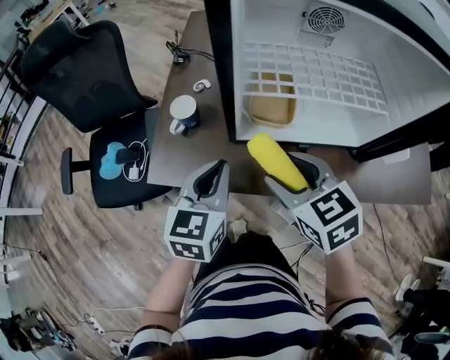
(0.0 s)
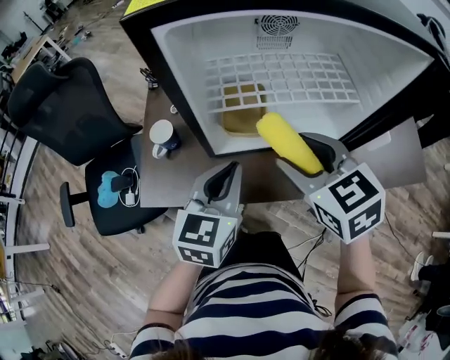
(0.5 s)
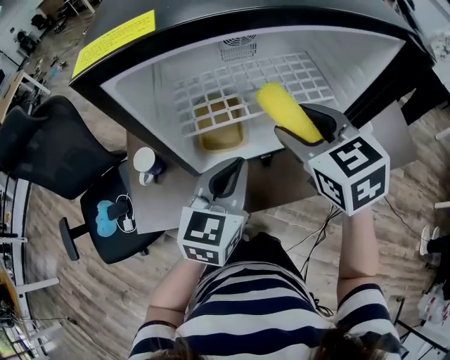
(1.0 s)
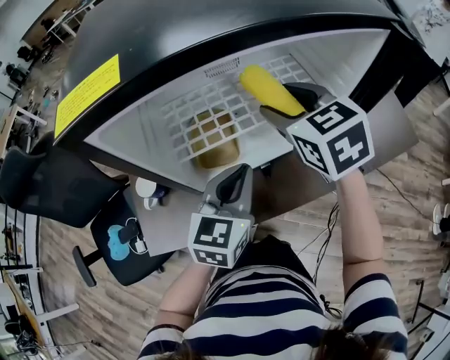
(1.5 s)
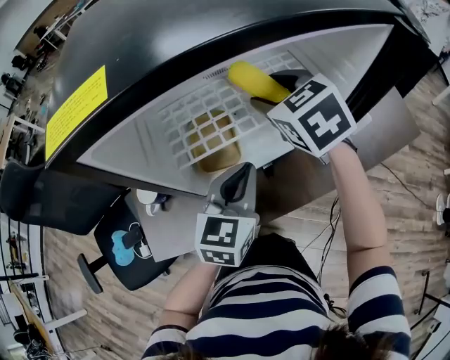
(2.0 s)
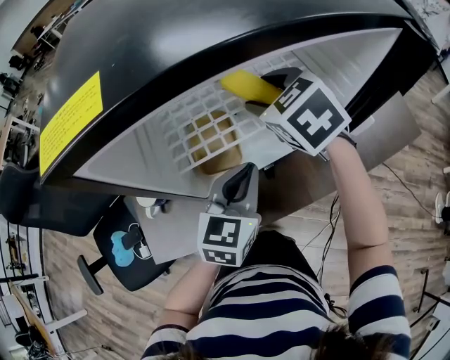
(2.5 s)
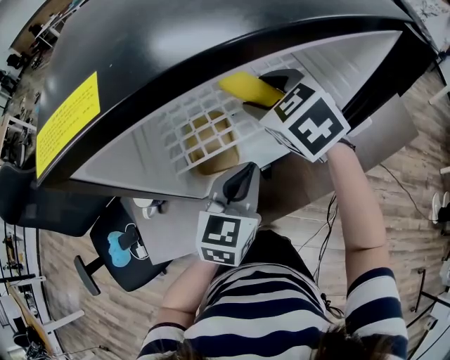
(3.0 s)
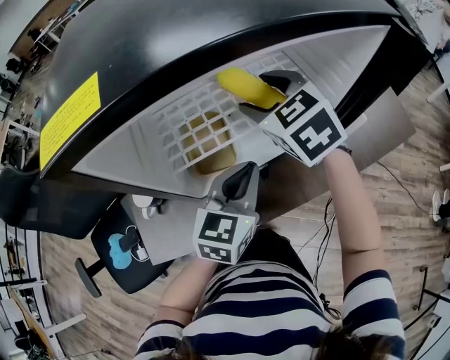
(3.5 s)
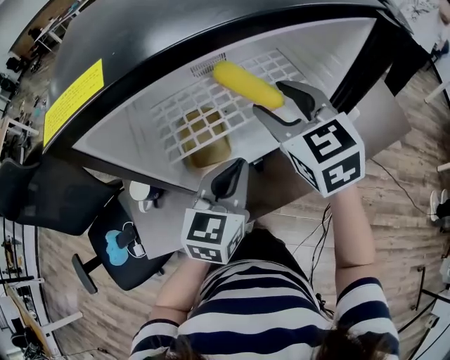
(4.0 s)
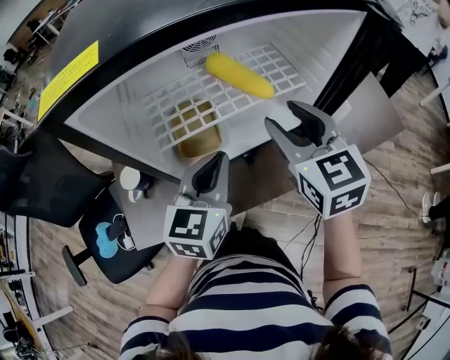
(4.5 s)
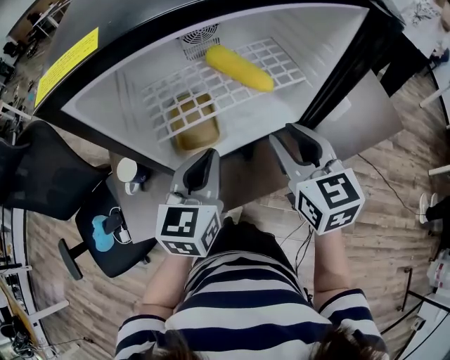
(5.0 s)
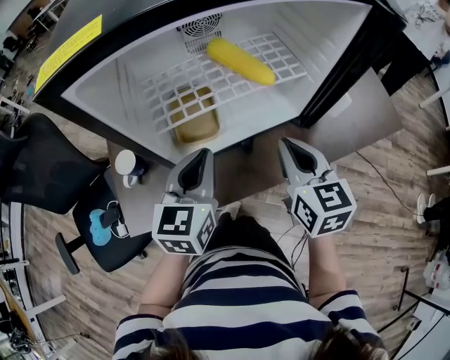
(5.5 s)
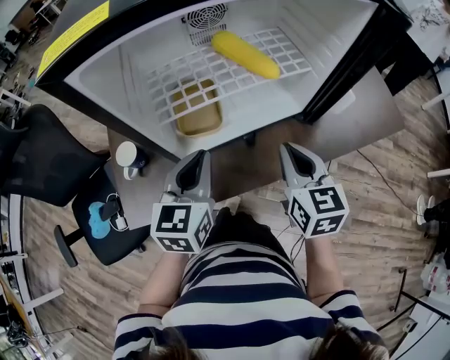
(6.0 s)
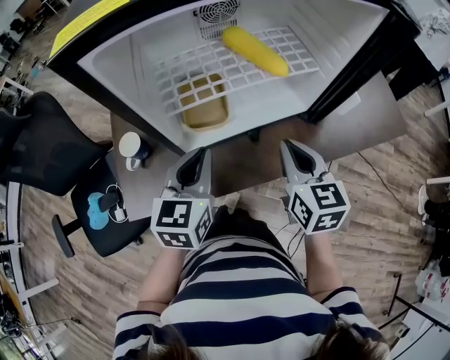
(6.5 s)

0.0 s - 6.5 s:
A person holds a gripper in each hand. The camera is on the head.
0.0 s - 2.0 s: The right gripper moves about 25 cm, and changes its angle by some 30 degrees, while the left gripper changes place by approximately 20 cm, and swivels roughly 30 degrees.
2.0 s - 4.5 s: The right gripper goes approximately 10 cm backward and to the right, and rotates about 20 degrees.
4.5 s - 6.5 s: The right gripper moves downward and backward, roughly 10 cm, and closes up, while the left gripper moves to the left, about 5 cm.

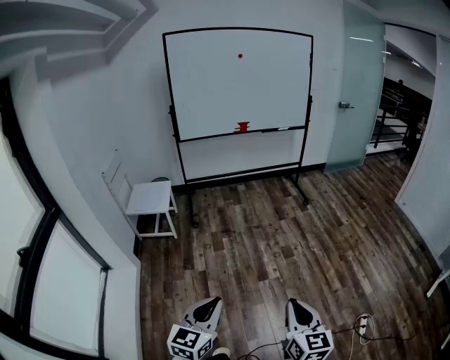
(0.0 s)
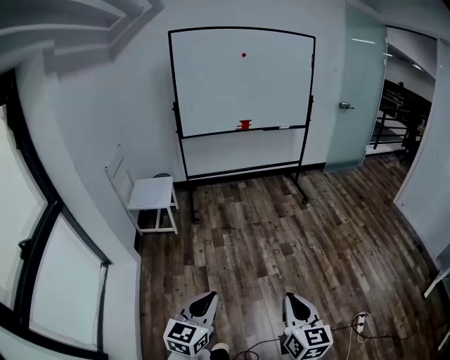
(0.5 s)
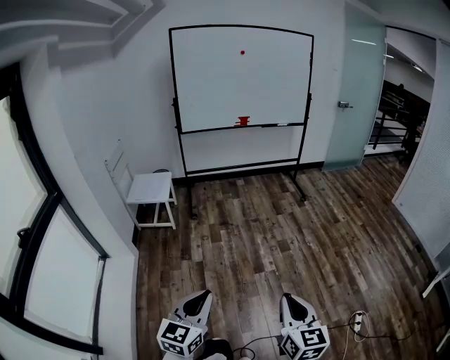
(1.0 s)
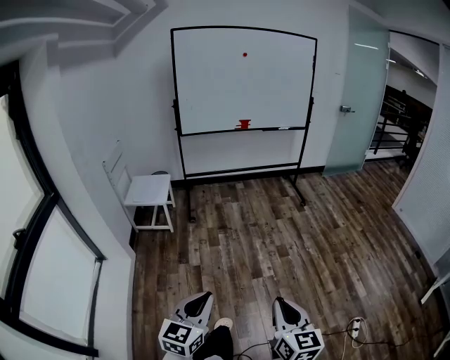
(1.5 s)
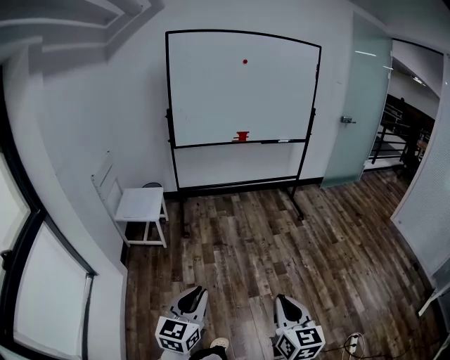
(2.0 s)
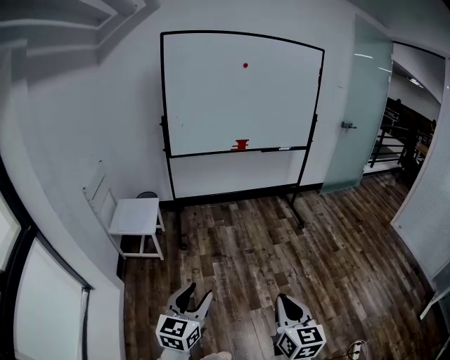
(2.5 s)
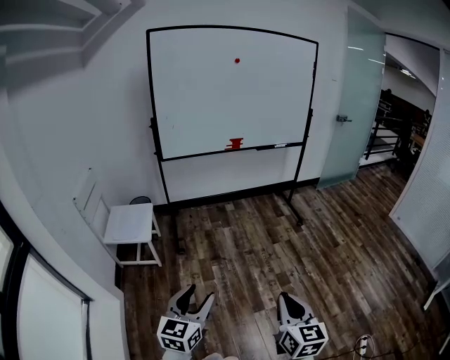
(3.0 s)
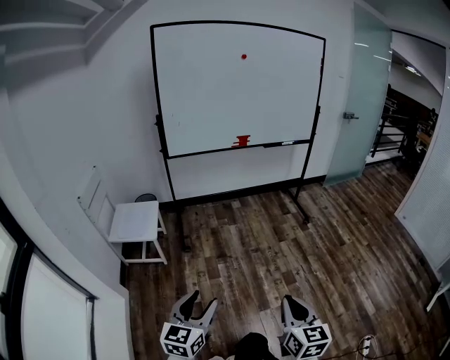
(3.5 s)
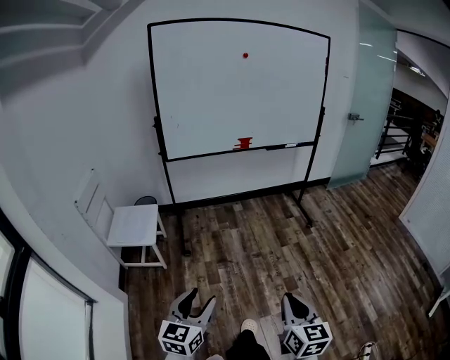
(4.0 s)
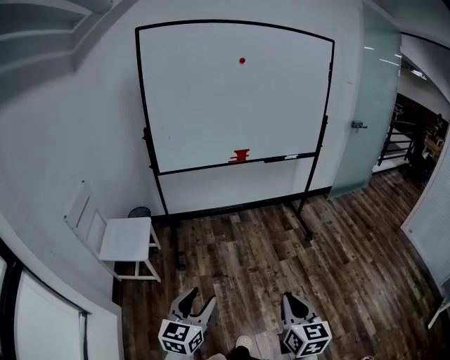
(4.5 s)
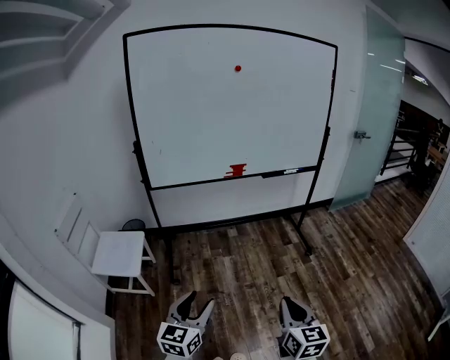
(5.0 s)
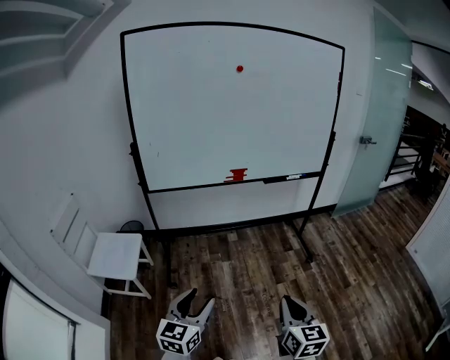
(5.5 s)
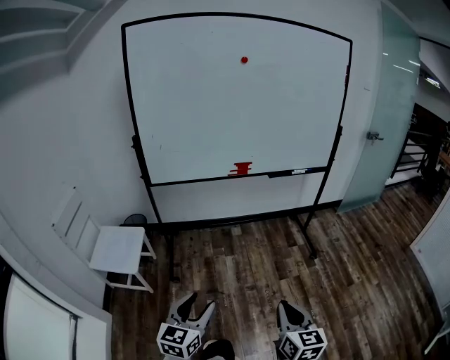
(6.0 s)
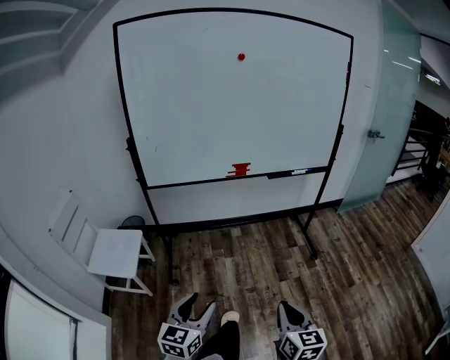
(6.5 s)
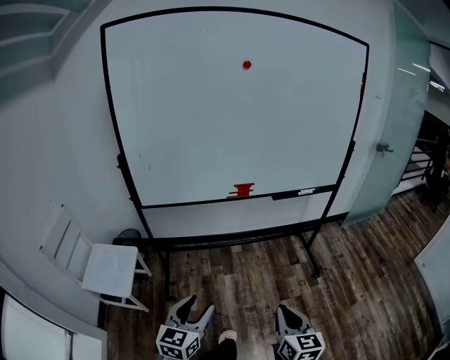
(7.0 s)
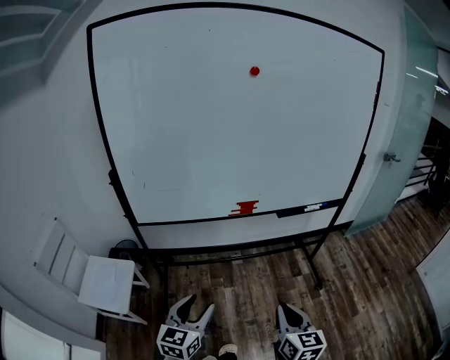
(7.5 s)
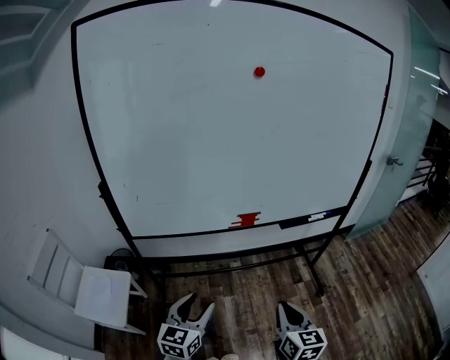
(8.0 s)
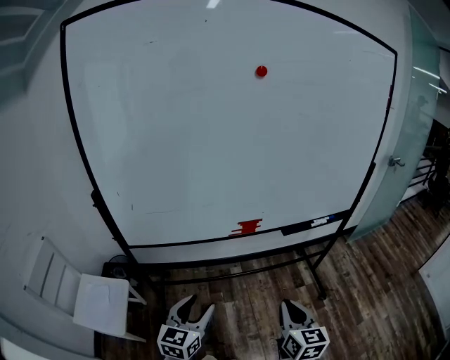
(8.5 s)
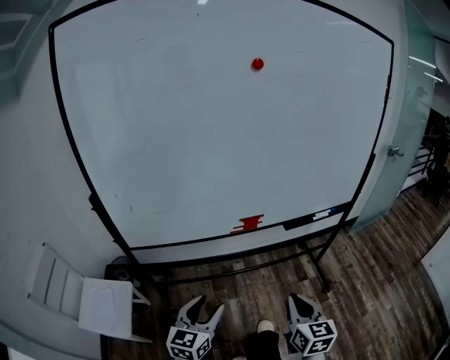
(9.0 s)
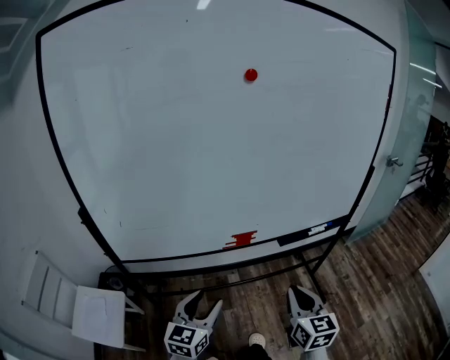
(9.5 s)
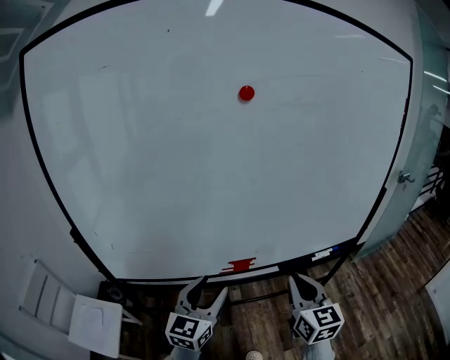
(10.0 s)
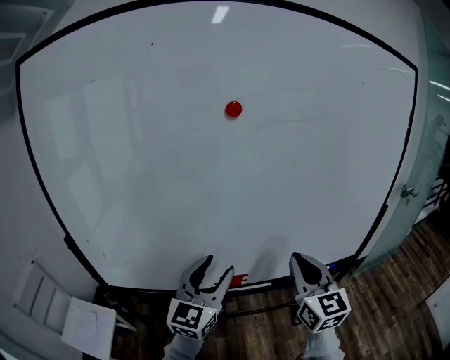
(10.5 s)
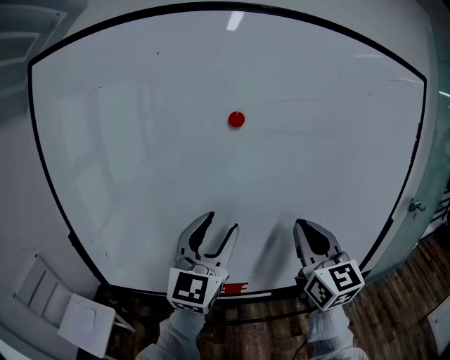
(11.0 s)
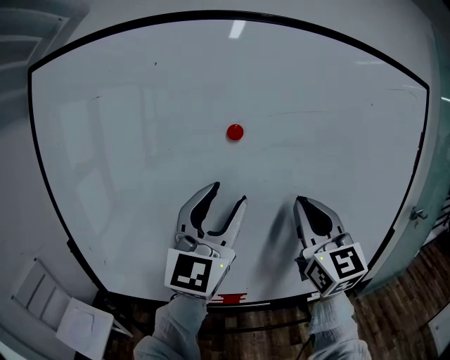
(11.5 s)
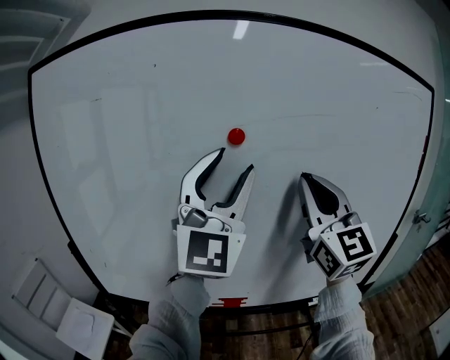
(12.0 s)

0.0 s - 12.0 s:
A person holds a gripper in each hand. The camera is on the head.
0.0 s - 2.0 s: The two grippers go some 10 cm forward.
2.0 s - 4.0 s: Both grippers travel together forward, some 20 cm. The left gripper opens up.
4.0 s - 6.0 s: Both grippers move forward, about 25 cm.
6.0 s - 8.0 s: Both grippers move forward, about 35 cm.
8.0 s - 10.0 s: Both grippers move forward and upward, roughly 25 cm.
10.0 s - 12.0 s: The left gripper travels upward by roughly 40 cm, and tilts its fingers about 30 degrees upward, while the right gripper heads upward and forward, covering roughly 35 cm, and rotates roughly 40 degrees.

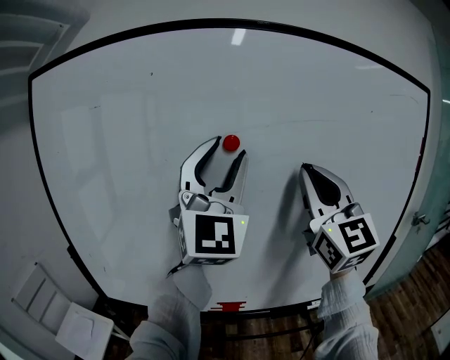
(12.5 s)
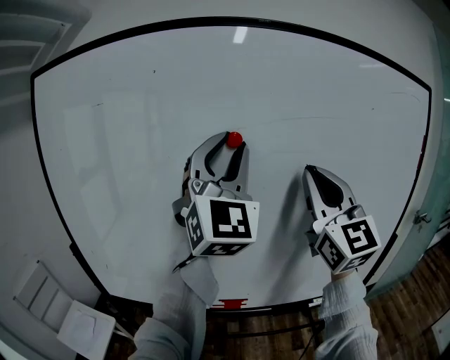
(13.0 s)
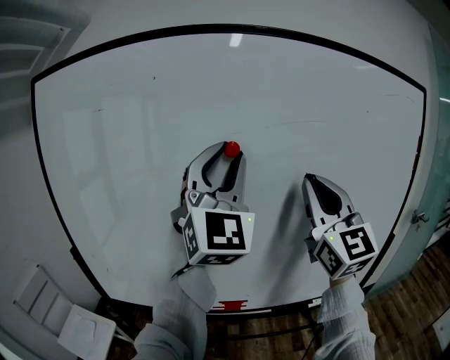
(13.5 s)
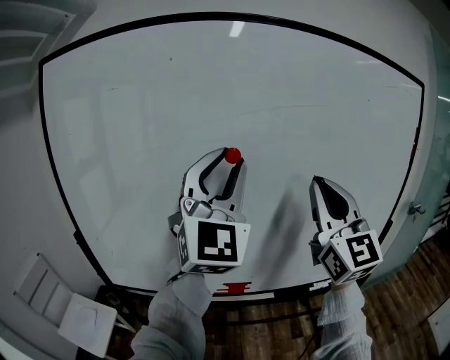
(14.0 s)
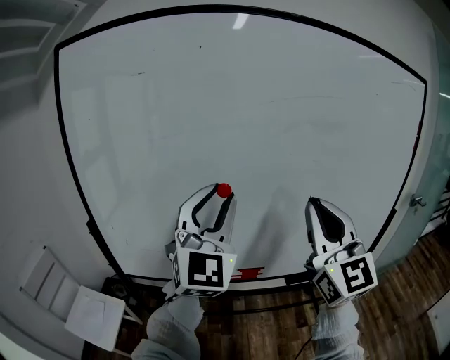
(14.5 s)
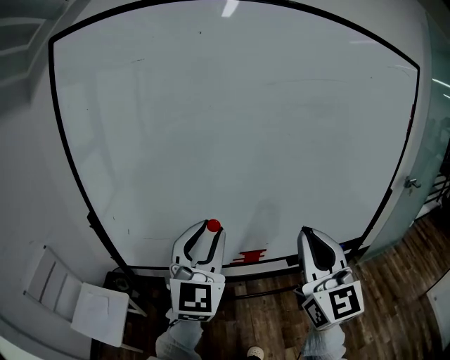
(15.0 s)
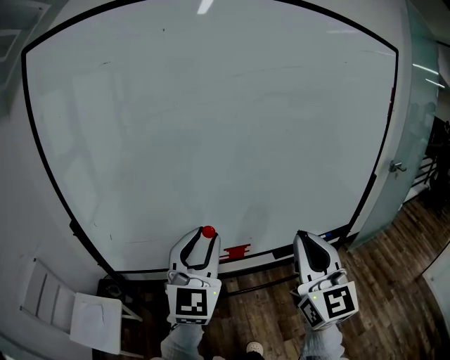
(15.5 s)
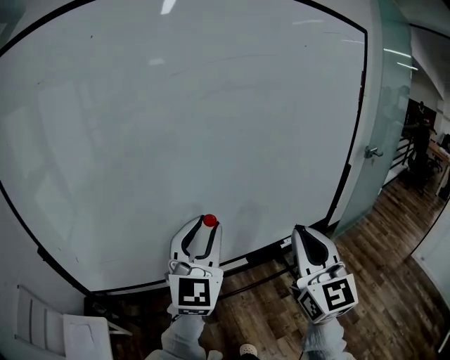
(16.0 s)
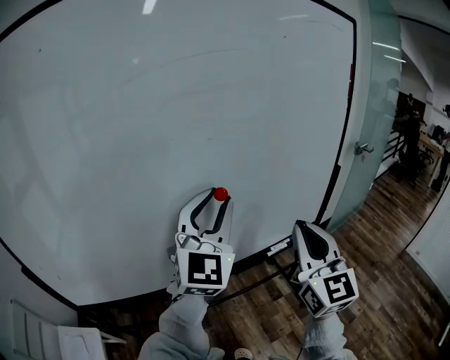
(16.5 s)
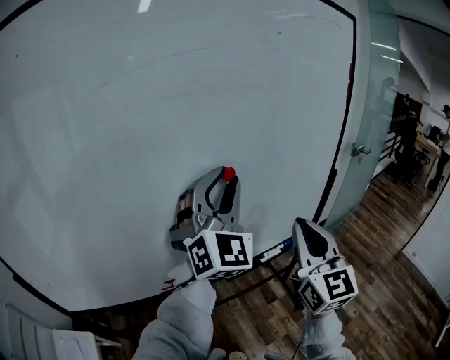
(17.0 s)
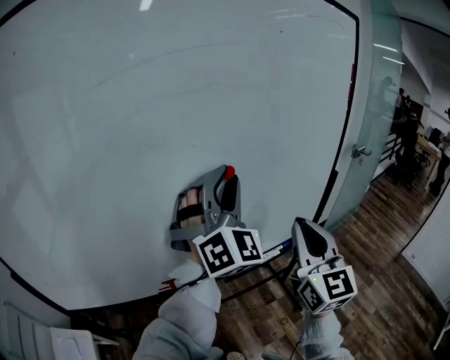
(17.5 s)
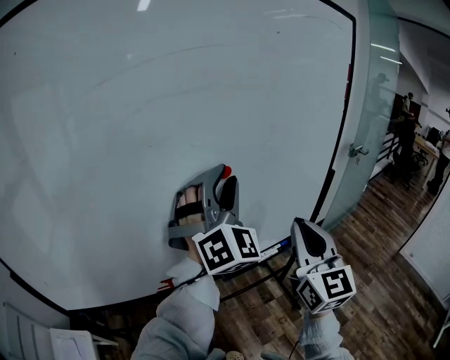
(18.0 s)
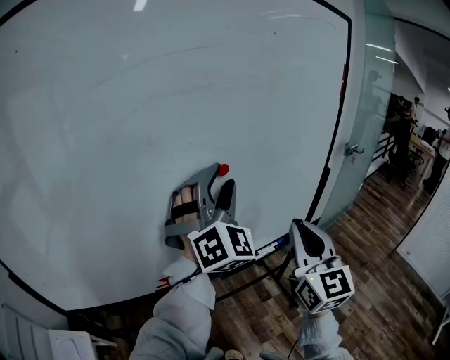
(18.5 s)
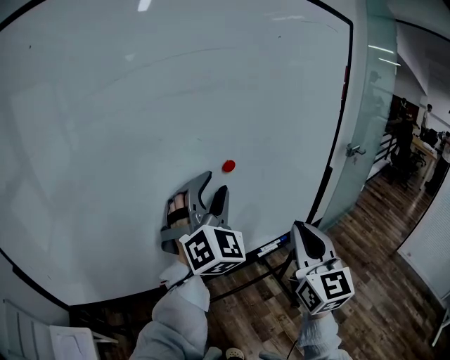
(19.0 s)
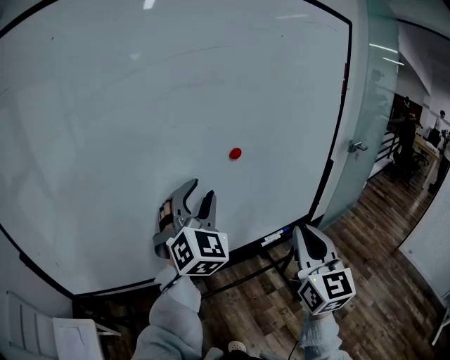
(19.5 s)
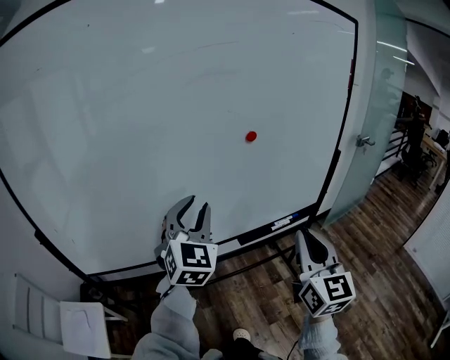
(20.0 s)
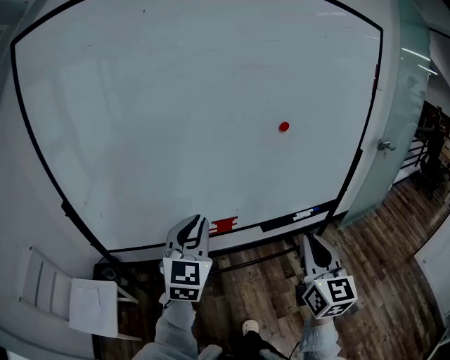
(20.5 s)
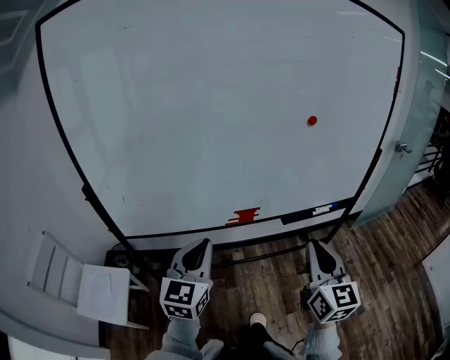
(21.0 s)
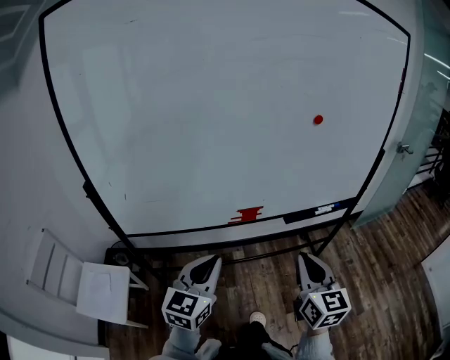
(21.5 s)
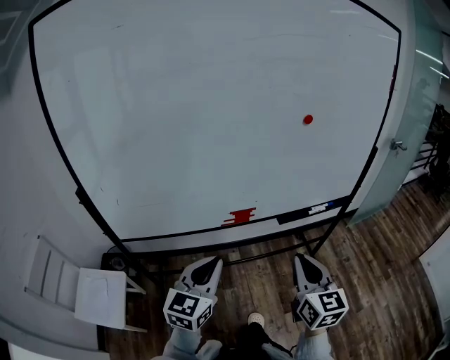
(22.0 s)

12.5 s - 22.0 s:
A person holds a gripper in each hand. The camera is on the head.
12.5 s - 14.5 s: The right gripper travels backward, downward and to the left by some 15 cm; the left gripper heads downward, to the left and backward, covering roughly 20 cm.
14.5 s - 16.5 s: The left gripper shifts some 20 cm to the right, and changes its angle by some 20 degrees. The right gripper moves to the right and downward, about 25 cm, and turns by approximately 30 degrees.
16.5 s - 18.0 s: The right gripper changes place by about 5 cm. Meanwhile the left gripper is displaced forward and to the right by about 10 cm, and swivels approximately 30 degrees.
18.0 s - 20.0 s: The left gripper goes approximately 20 cm to the left, backward and downward, and swivels approximately 30 degrees. The right gripper shifts approximately 15 cm backward.
20.0 s - 22.0 s: The right gripper shifts approximately 15 cm to the left, downward and backward. The left gripper goes about 25 cm backward, downward and to the left, changes its angle by approximately 30 degrees, and closes.
